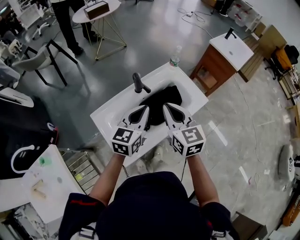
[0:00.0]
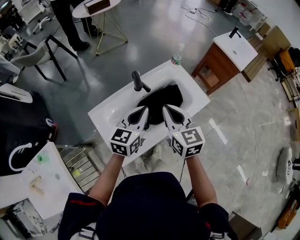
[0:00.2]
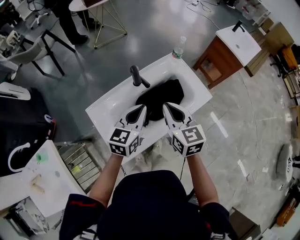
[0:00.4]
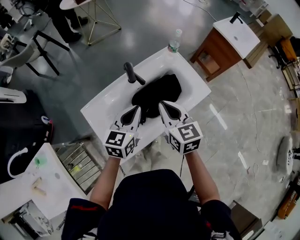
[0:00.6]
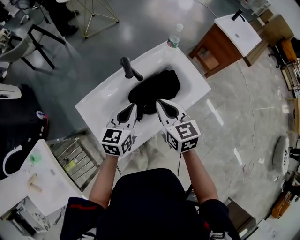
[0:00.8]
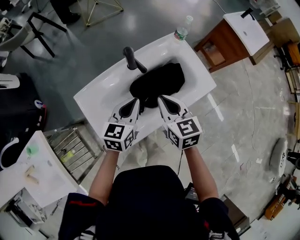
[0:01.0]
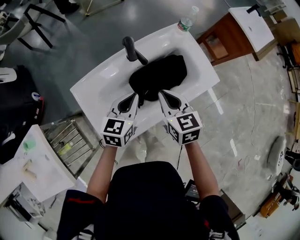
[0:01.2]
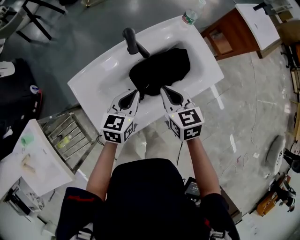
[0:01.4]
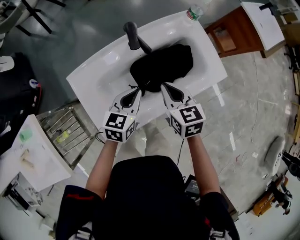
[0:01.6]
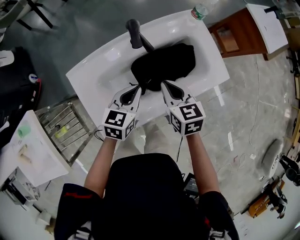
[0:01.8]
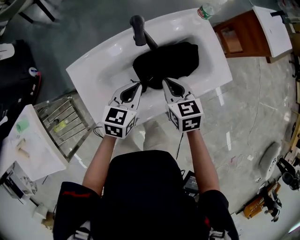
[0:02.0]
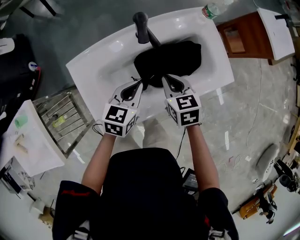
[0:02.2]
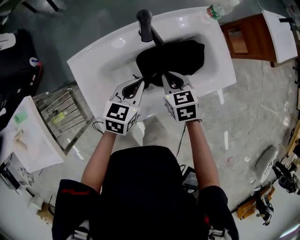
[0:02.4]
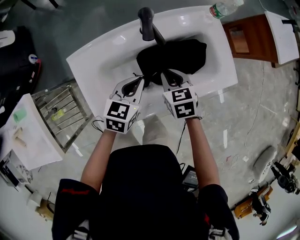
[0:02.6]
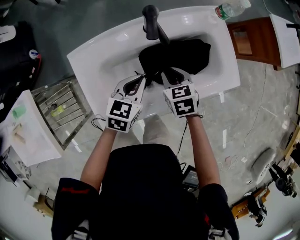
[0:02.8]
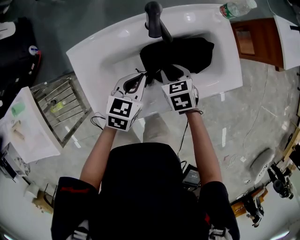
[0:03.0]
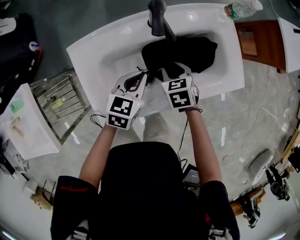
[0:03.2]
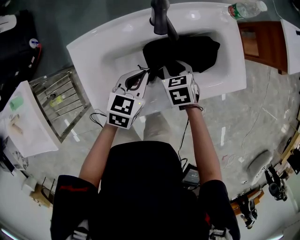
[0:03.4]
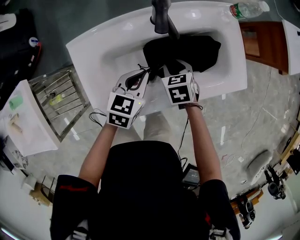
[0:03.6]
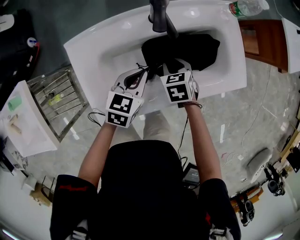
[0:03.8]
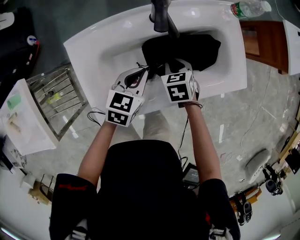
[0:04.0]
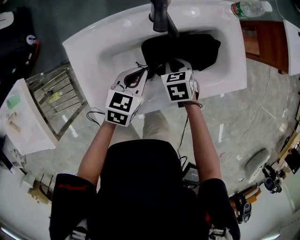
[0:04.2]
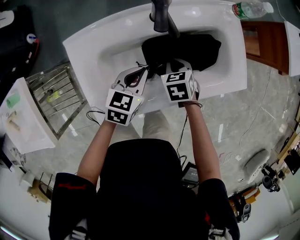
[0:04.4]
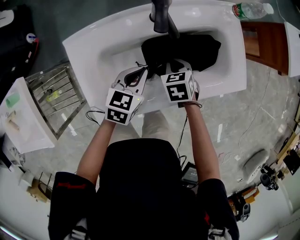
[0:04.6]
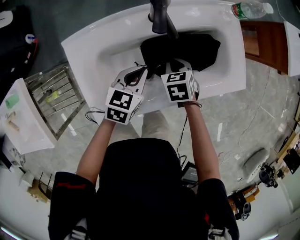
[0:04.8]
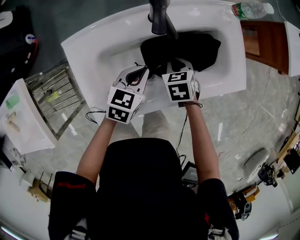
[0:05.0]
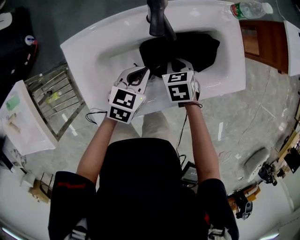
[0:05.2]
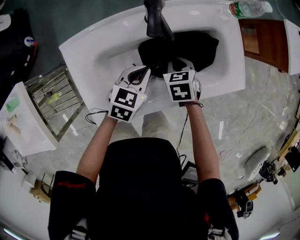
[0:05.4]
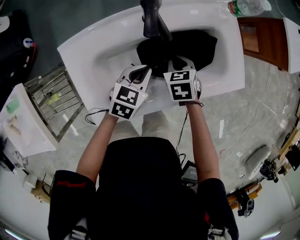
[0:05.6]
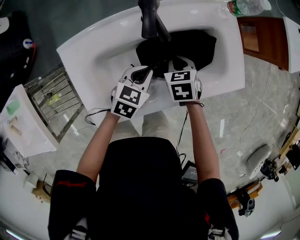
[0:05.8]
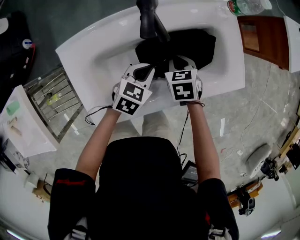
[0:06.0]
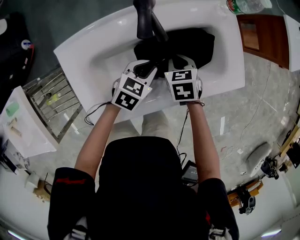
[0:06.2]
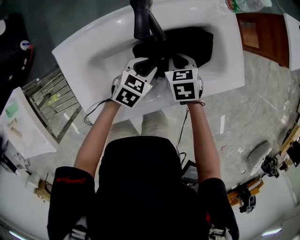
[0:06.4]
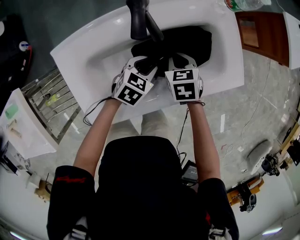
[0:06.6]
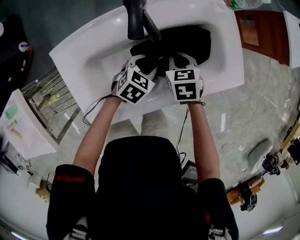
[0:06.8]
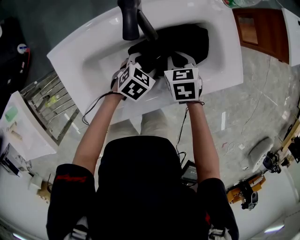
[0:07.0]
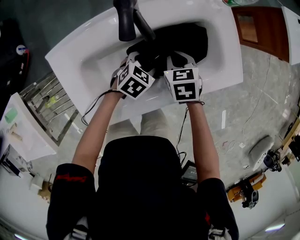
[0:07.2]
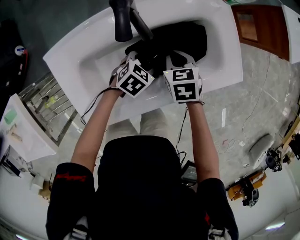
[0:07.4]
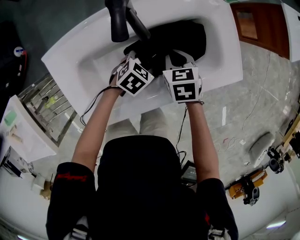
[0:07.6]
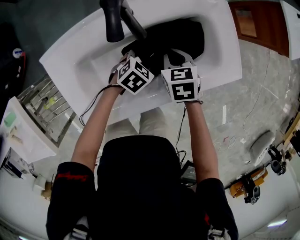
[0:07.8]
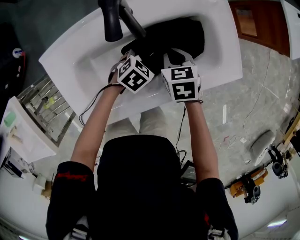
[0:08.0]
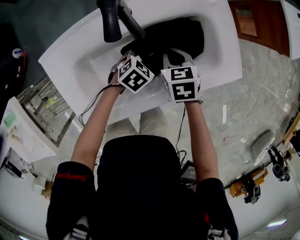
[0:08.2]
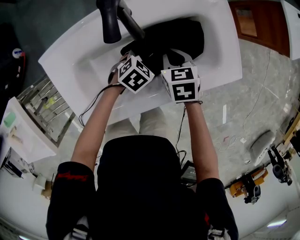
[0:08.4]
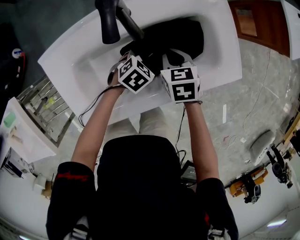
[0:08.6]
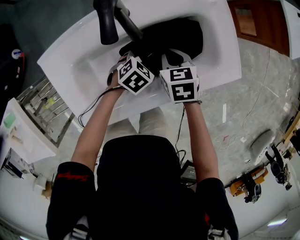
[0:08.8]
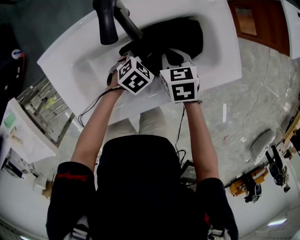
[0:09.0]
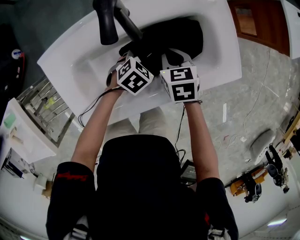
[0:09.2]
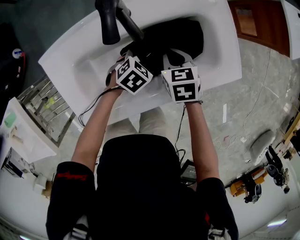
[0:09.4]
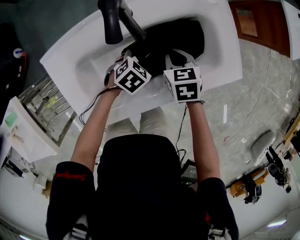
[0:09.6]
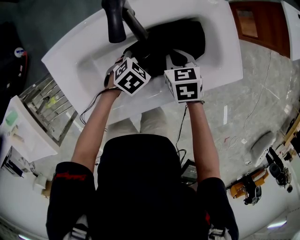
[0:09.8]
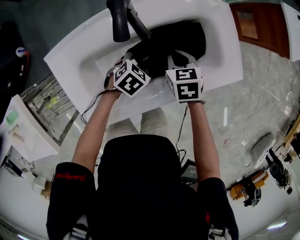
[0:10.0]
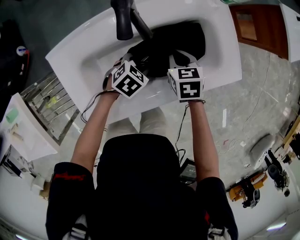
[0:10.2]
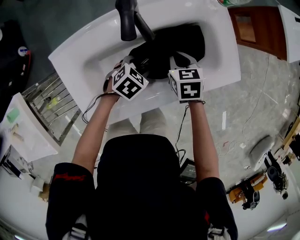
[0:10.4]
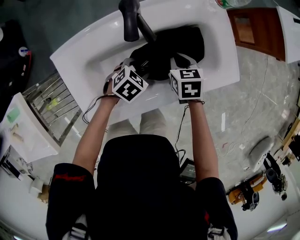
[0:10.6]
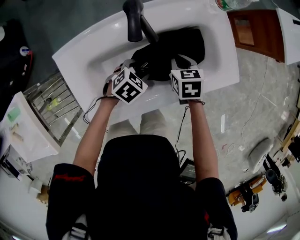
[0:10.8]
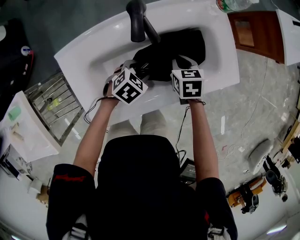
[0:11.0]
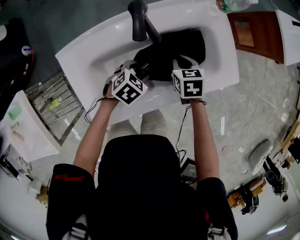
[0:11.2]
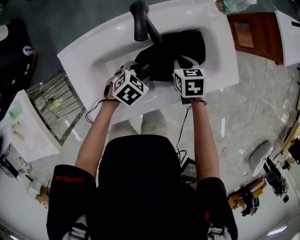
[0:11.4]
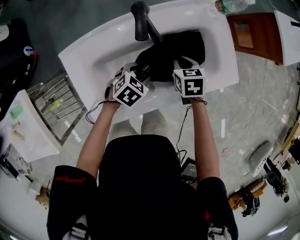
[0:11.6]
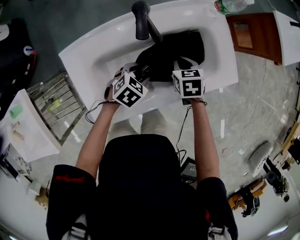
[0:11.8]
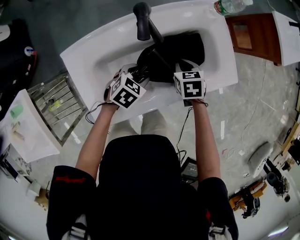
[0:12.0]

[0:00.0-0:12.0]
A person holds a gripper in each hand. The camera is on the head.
0:00.0 to 0:01.6: Both grippers travel together downward, about 20 cm. The left gripper changes its angle by approximately 20 degrees. The right gripper rotates about 20 degrees.
0:01.6 to 0:03.0: The right gripper heads downward, covering some 15 cm, changes its angle by roughly 30 degrees, and opens.
0:03.0 to 0:04.4: The grippers stay close to where they were, moving slightly.
0:04.4 to 0:06.0: The left gripper moves some 5 cm.
0:06.0 to 0:07.6: The left gripper shifts some 10 cm downward, turns by about 20 degrees, and opens.
0:07.6 to 0:09.0: The grippers stay close to where they were, moving slightly.
0:09.0 to 0:10.4: The left gripper moves some 5 cm.
0:10.4 to 0:12.0: The left gripper ends up some 5 cm from where it was.

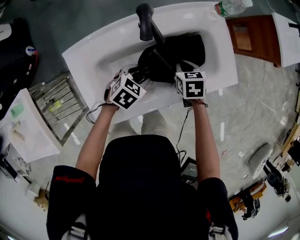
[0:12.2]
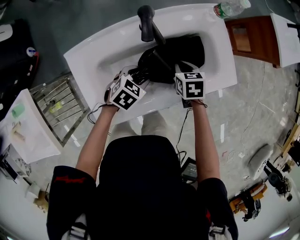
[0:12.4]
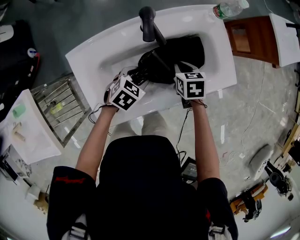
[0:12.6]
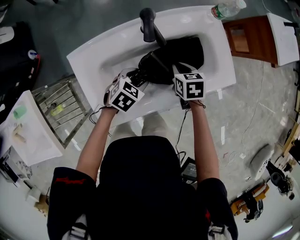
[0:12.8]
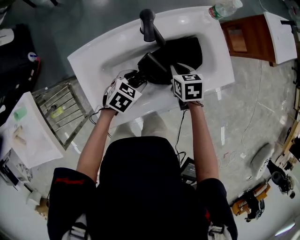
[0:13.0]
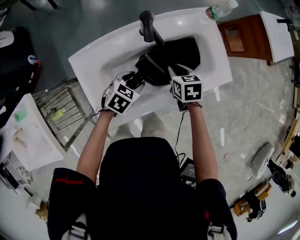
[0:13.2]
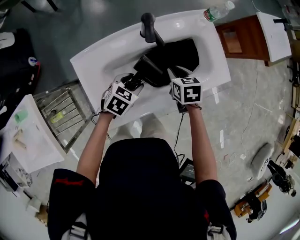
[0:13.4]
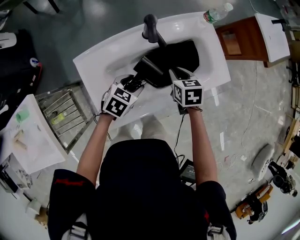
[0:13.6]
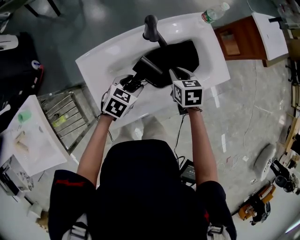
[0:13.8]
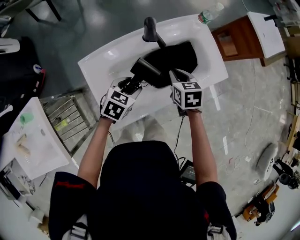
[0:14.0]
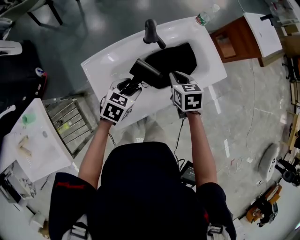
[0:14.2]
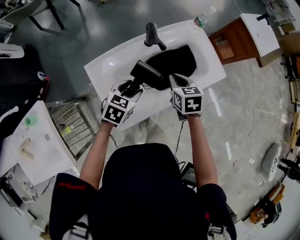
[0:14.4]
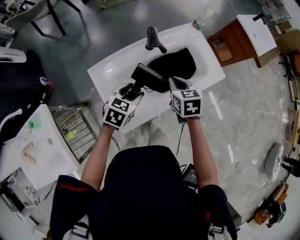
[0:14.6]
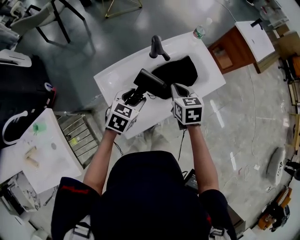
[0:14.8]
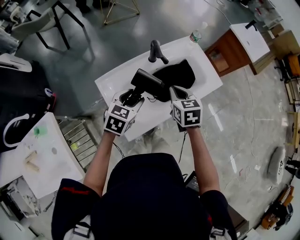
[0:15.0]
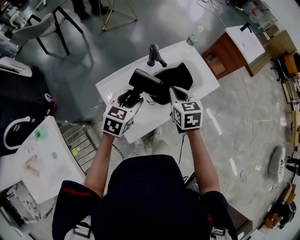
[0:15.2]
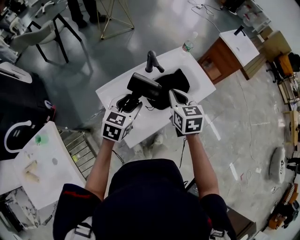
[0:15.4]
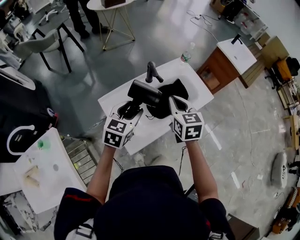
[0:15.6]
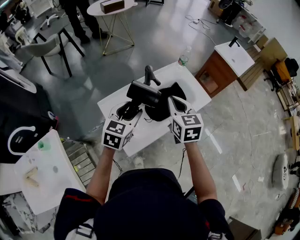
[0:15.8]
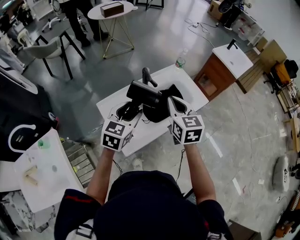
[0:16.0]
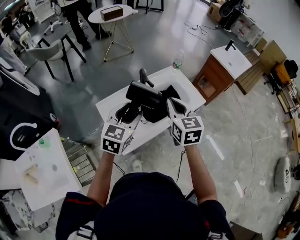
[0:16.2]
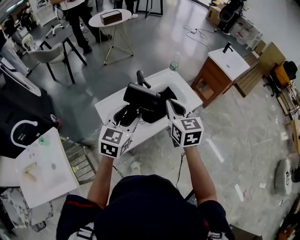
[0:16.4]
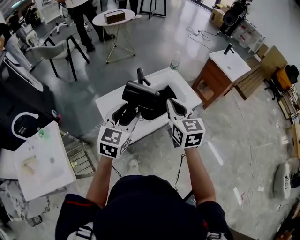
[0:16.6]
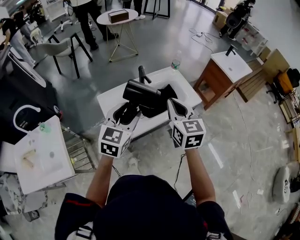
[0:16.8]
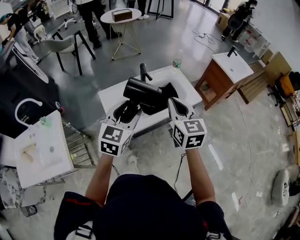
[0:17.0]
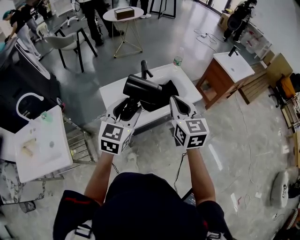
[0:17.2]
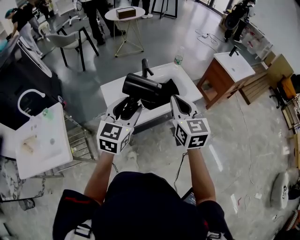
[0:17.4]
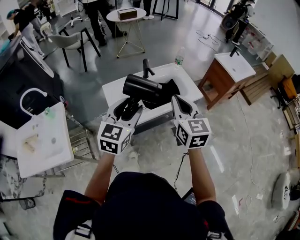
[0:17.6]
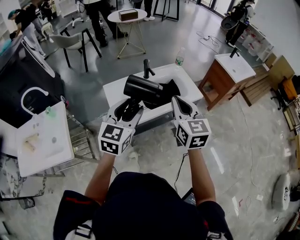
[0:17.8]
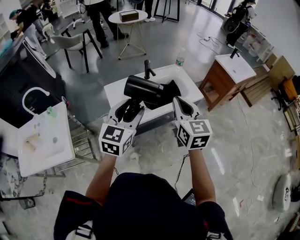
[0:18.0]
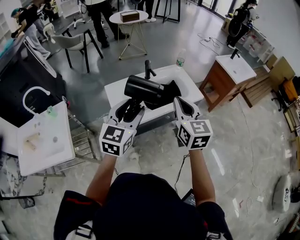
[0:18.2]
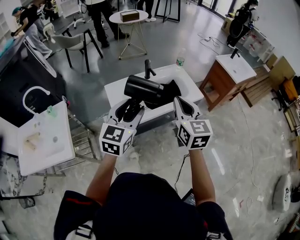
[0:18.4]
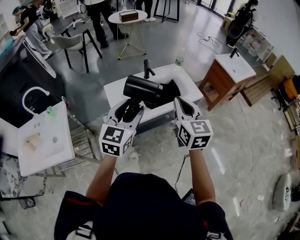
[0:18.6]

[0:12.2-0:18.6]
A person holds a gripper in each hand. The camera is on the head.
0:12.2 to 0:13.8: The right gripper heads upward, covering some 10 cm, while the left gripper shifts approximately 10 cm upward and to the left.
0:13.8 to 0:15.4: The left gripper heads upward, covering some 20 cm, and turns by approximately 20 degrees; the right gripper goes approximately 20 cm upward and backward, and rotates approximately 20 degrees.
0:15.4 to 0:17.0: The grippers both shift upward, backward and to the right by about 20 cm. The left gripper swivels approximately 20 degrees.
0:17.0 to 0:18.6: Both grippers move backward, about 5 cm.

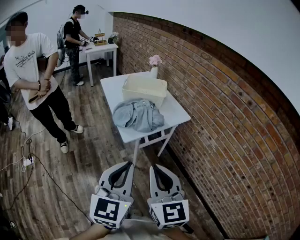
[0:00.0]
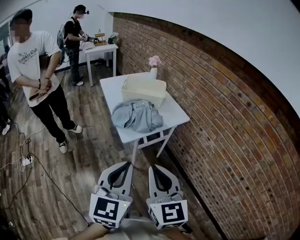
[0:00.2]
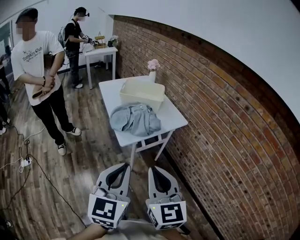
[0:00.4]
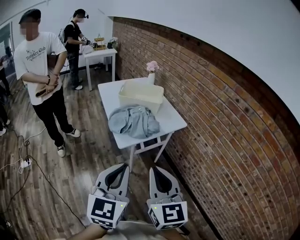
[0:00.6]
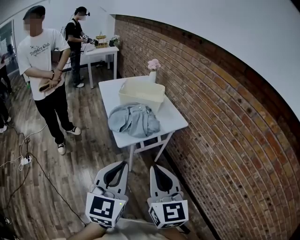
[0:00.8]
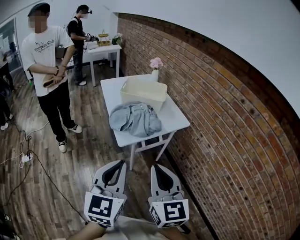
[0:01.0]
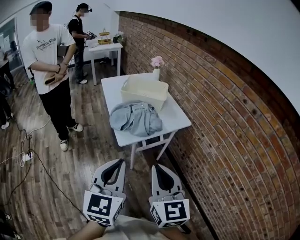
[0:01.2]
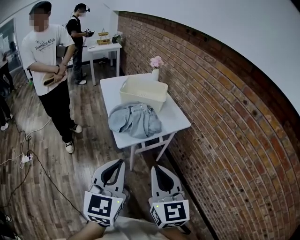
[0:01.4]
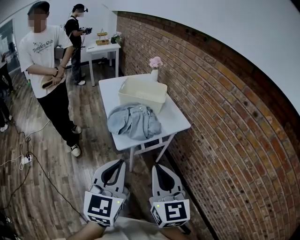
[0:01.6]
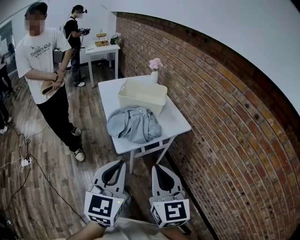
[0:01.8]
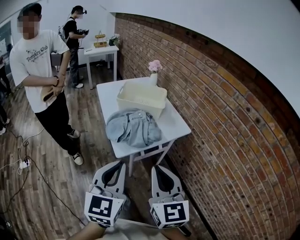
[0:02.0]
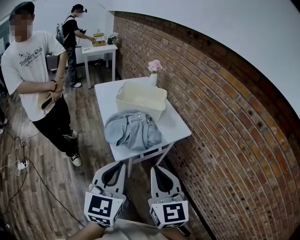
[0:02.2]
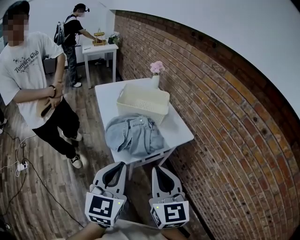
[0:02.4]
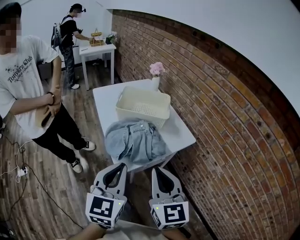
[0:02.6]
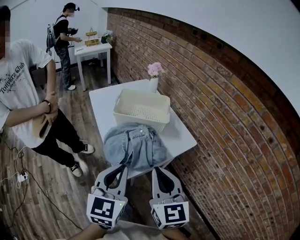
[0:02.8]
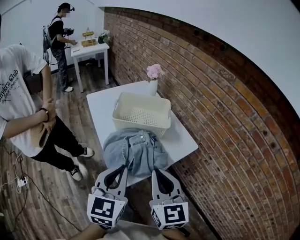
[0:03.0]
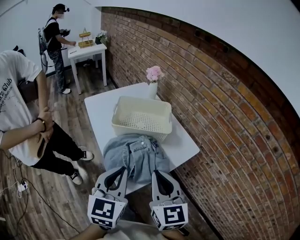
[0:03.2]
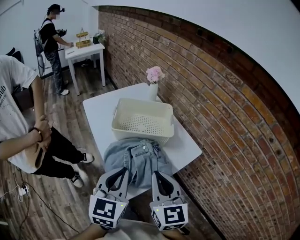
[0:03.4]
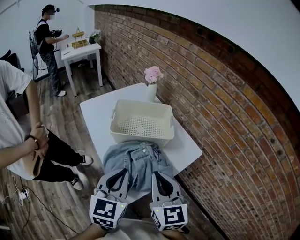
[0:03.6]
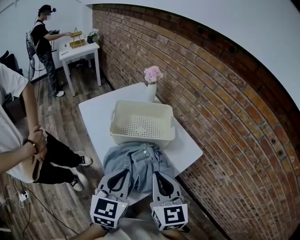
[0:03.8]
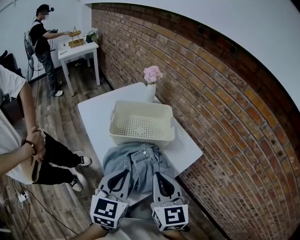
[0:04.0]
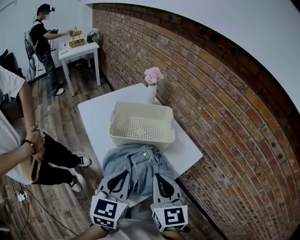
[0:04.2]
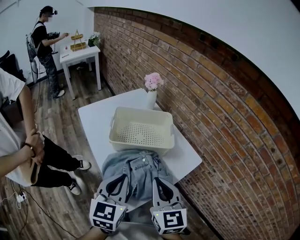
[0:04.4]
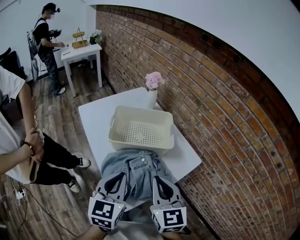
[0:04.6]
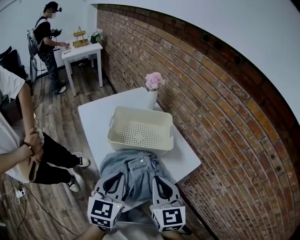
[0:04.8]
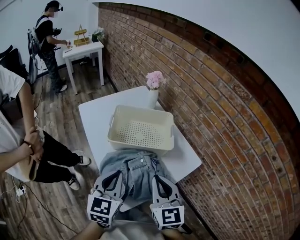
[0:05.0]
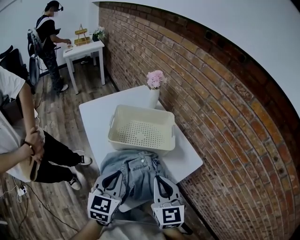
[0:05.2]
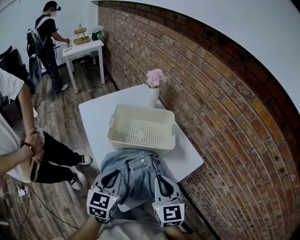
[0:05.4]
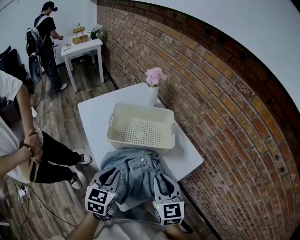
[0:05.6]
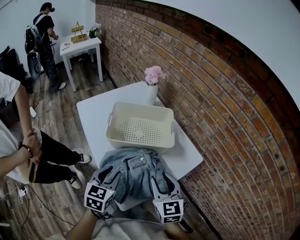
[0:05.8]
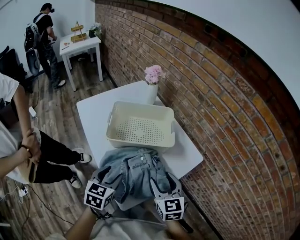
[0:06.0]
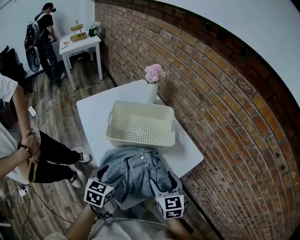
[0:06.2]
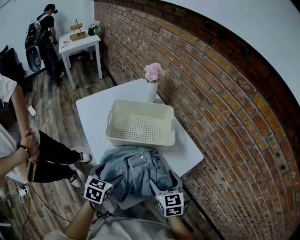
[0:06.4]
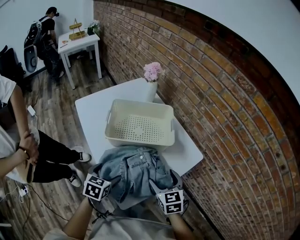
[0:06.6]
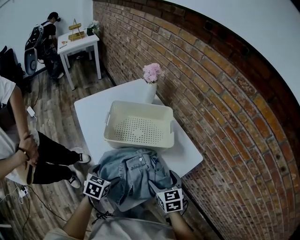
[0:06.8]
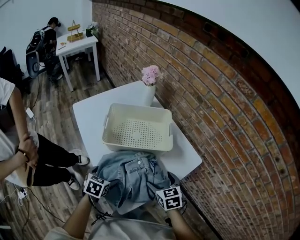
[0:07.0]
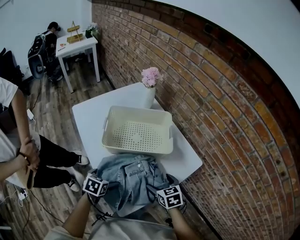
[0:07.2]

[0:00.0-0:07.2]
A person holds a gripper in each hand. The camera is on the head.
0:00.0 to 0:01.4: The two grippers go some 5 cm forward.
0:01.4 to 0:02.8: The two grippers go approximately 20 cm forward.
0:02.8 to 0:04.4: Both grippers travel together forward, approximately 15 cm.
0:04.4 to 0:05.8: Both grippers move downward, roughly 10 cm.
0:05.8 to 0:07.2: Both grippers move downward, roughly 15 cm. The left gripper changes its angle by about 30 degrees, and opens its fingers; the right gripper rotates roughly 30 degrees, and opens up.
